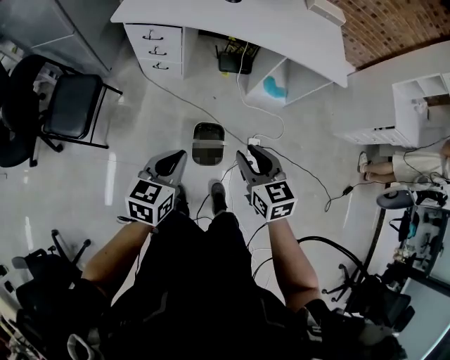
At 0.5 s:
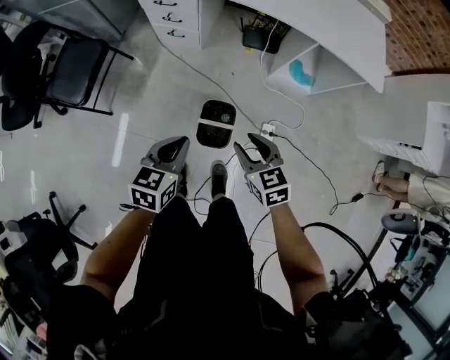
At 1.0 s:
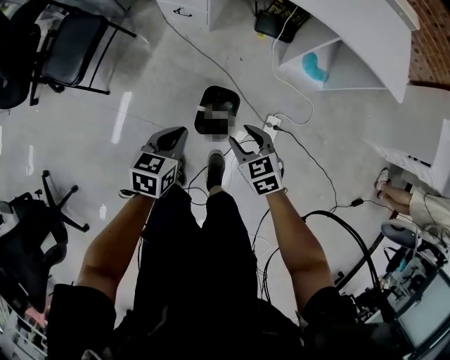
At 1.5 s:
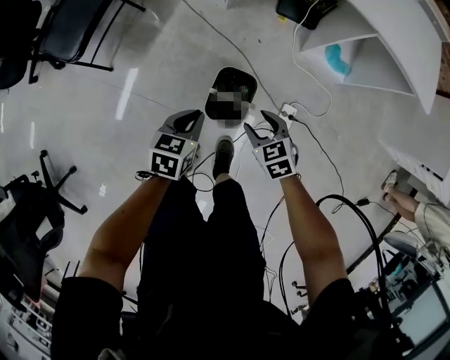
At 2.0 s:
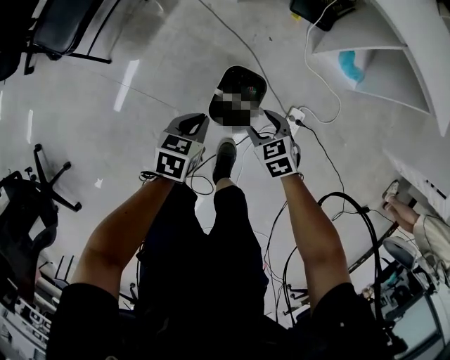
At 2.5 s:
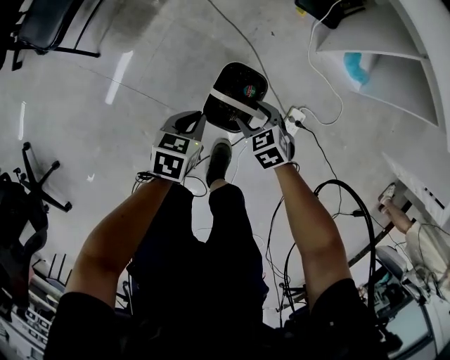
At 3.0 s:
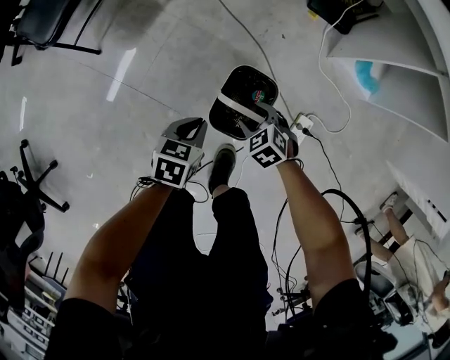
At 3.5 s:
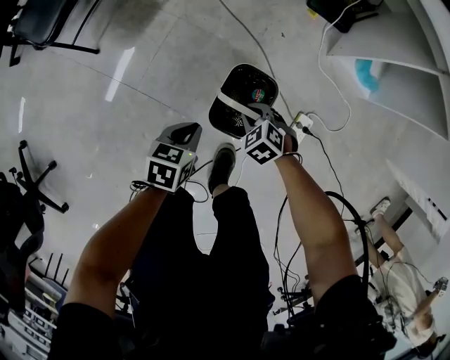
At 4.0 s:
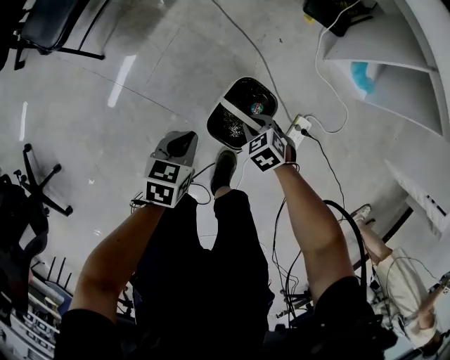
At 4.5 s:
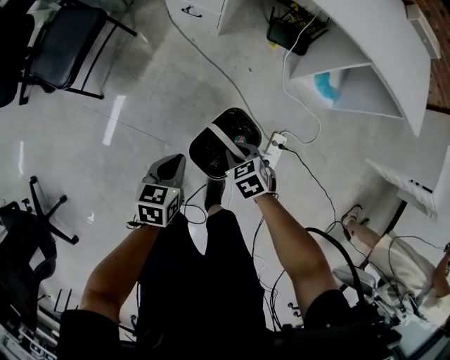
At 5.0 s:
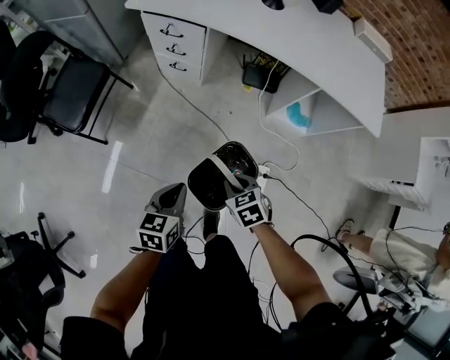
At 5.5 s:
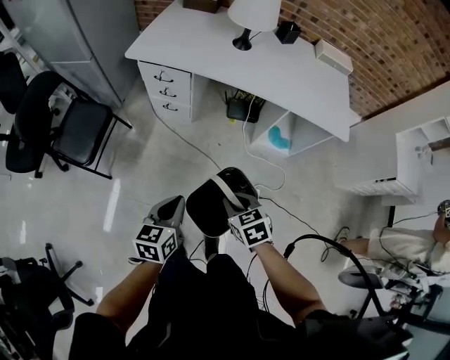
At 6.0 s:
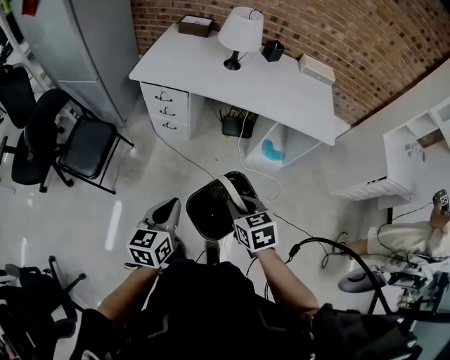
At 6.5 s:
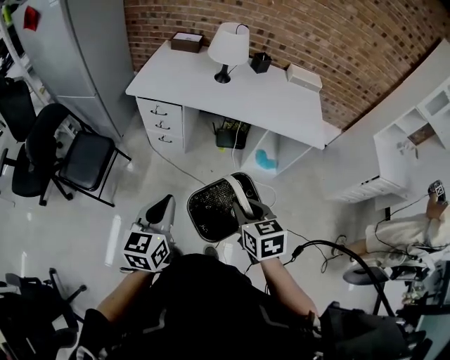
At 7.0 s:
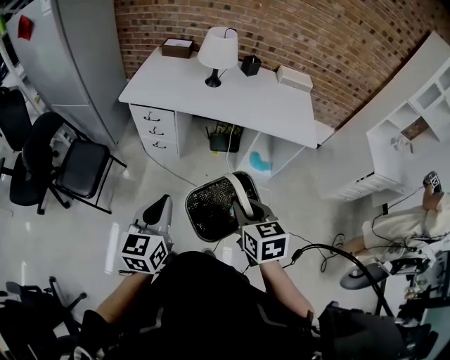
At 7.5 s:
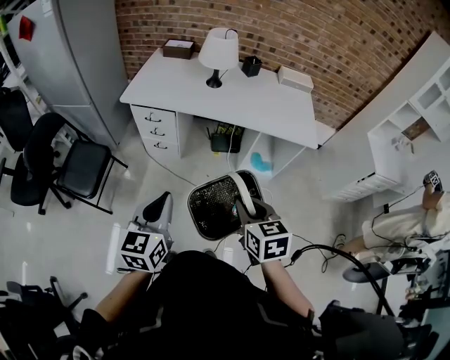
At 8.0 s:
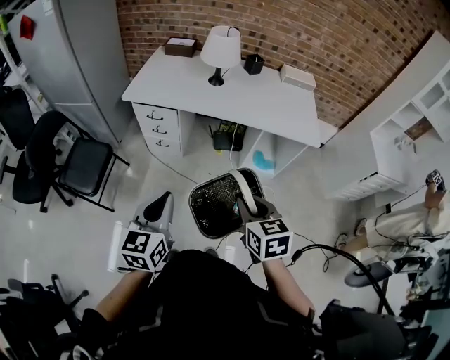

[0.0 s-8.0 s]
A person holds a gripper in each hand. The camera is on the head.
0.0 to 2.0 s: Both grippers move downward, some 40 cm. The right gripper turns by about 40 degrees, and opens, while the left gripper turns by roughly 30 degrees.
2.0 to 4.0 s: The left gripper travels downward by about 5 cm. The right gripper is displaced downward by some 10 cm, and closes its fingers.
4.0 to 6.0 s: Both grippers travel together upward, approximately 50 cm. The right gripper rotates roughly 50 degrees. Meanwhile the left gripper tips its fingers upward by approximately 30 degrees.
6.0 to 8.0 s: Both grippers move upward, approximately 10 cm.

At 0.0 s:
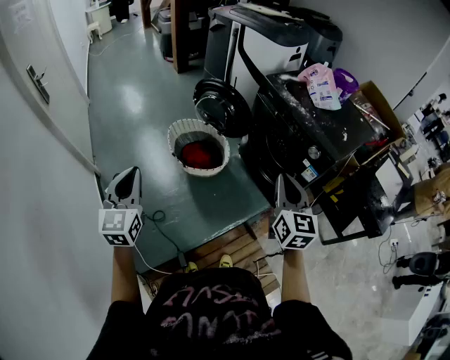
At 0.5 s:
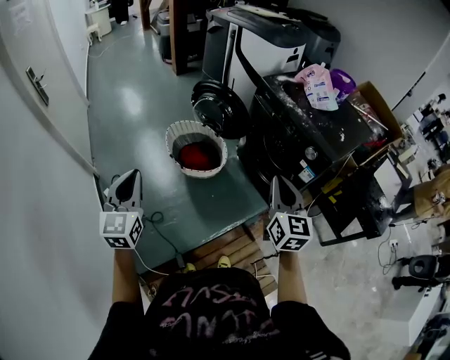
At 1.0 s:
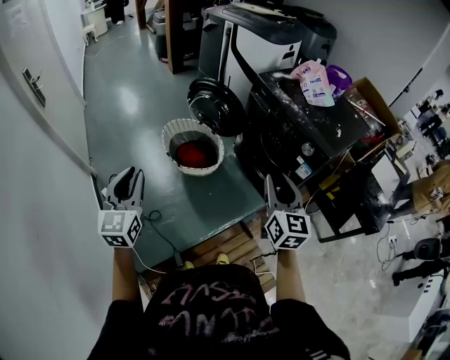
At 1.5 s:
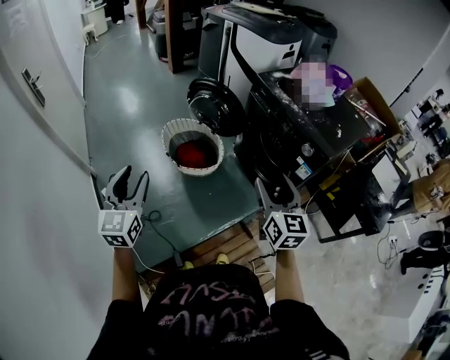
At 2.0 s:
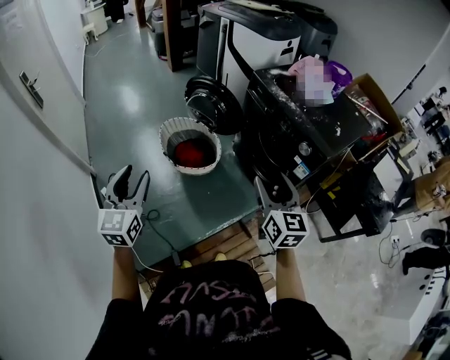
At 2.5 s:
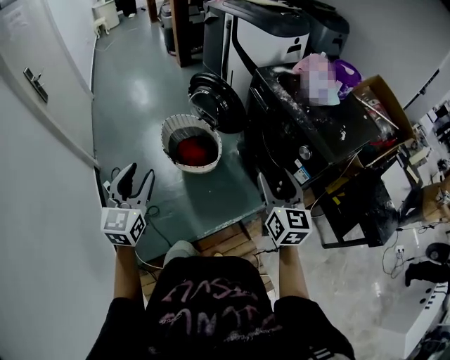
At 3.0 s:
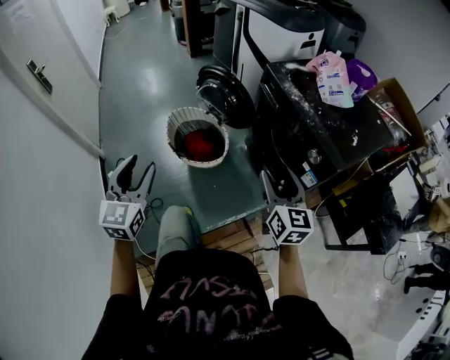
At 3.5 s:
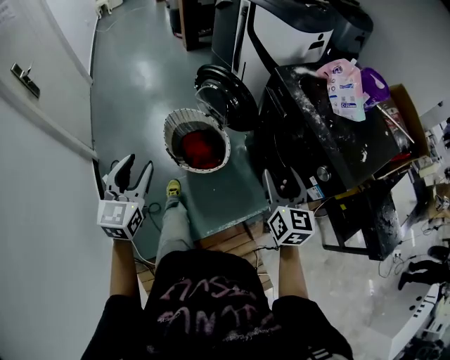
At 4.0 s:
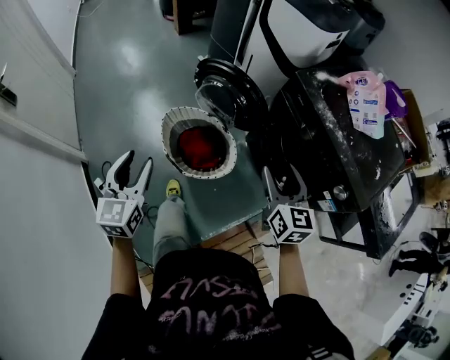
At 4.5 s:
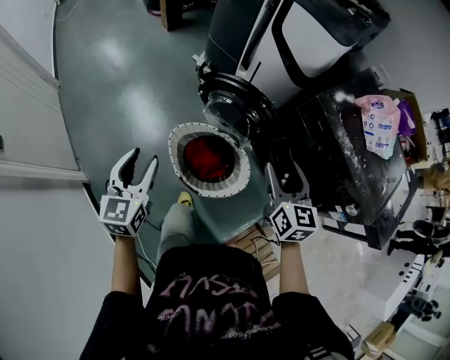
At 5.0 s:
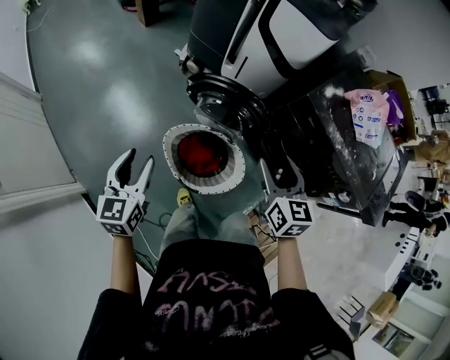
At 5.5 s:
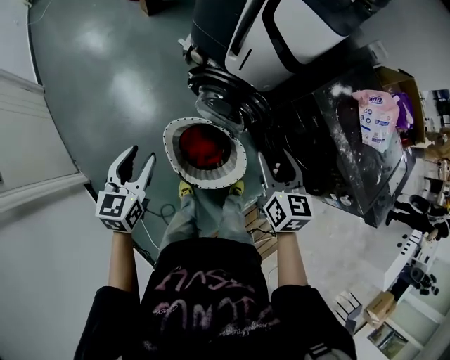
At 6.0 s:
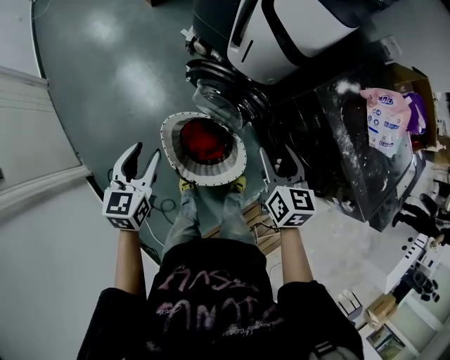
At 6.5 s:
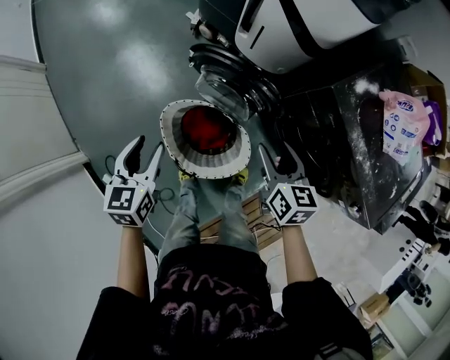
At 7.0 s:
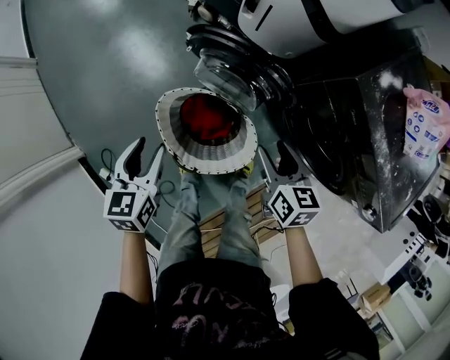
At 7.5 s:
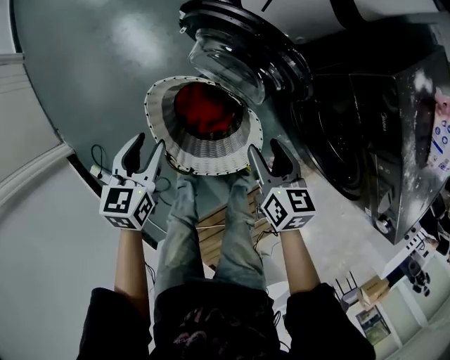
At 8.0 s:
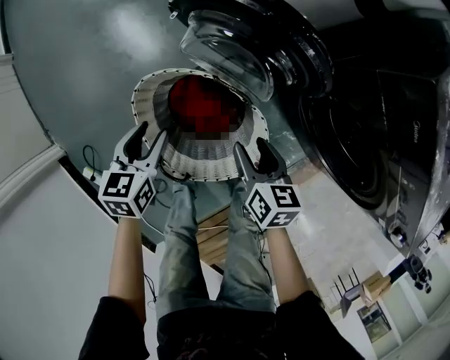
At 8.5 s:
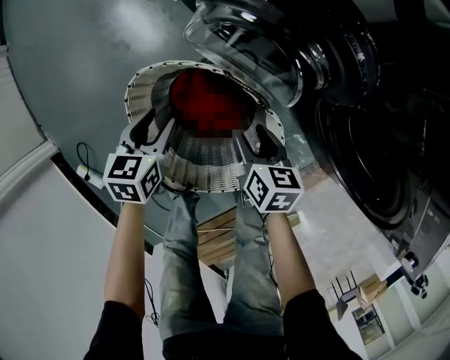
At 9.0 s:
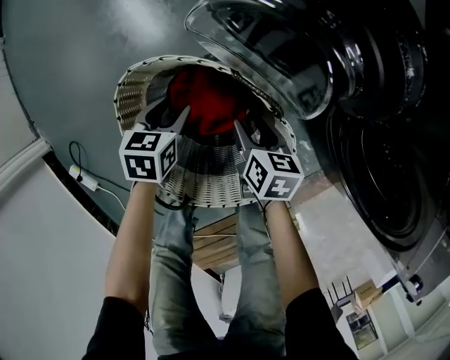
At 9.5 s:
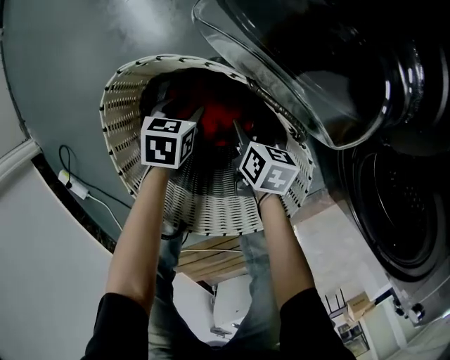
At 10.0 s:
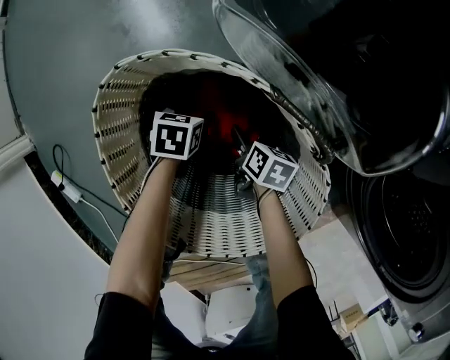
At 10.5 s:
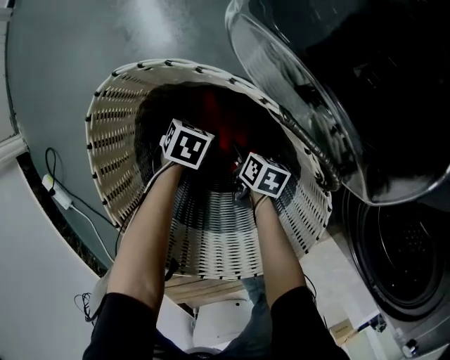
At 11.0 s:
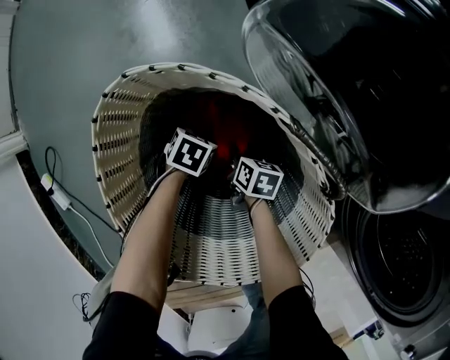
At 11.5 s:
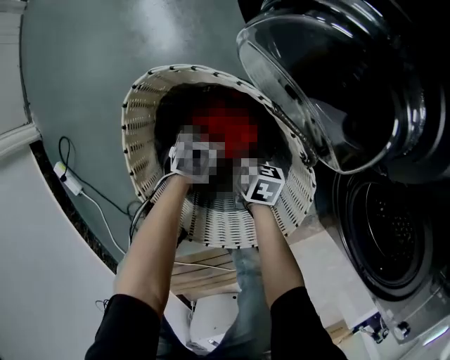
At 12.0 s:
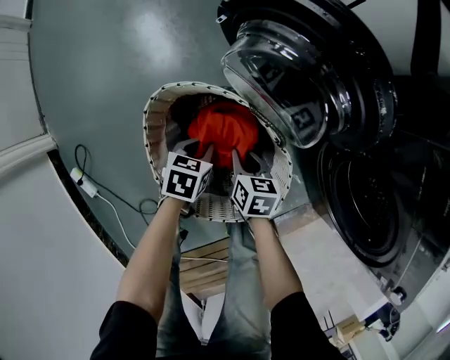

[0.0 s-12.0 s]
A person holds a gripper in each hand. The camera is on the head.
0.0 to 2.0 s: The left gripper heads to the right, covering about 5 cm, and opens, while the right gripper opens its fingers.
2.0 to 4.0 s: The two grippers go about 25 cm forward.
4.0 to 6.0 s: The right gripper shifts some 20 cm forward and to the left. Meanwhile the left gripper goes about 25 cm forward, and changes its angle by roughly 20 degrees.
6.0 to 8.0 s: The grippers both shift downward by roughly 35 cm.
8.0 to 10.0 s: The grippers both shift downward by some 40 cm. The left gripper turns by roughly 20 degrees, and opens its fingers.
10.0 to 12.0 s: The grippers both shift upward by approximately 20 cm. The left gripper closes its fingers, while the right gripper closes its fingers.

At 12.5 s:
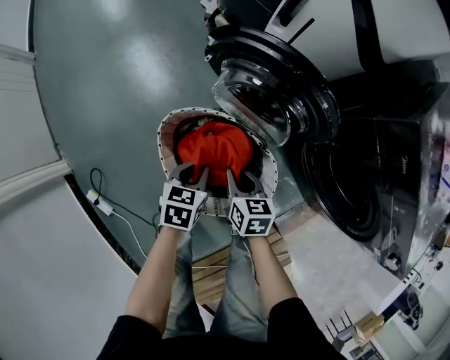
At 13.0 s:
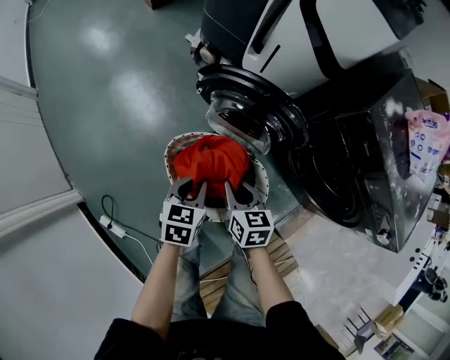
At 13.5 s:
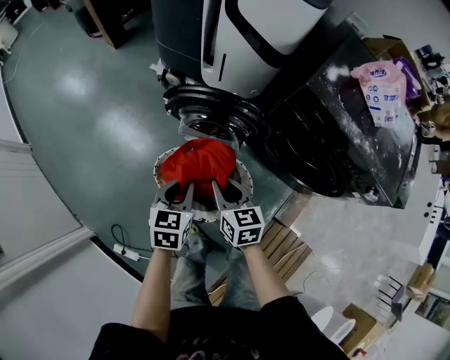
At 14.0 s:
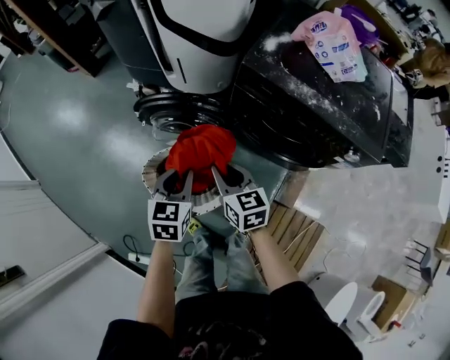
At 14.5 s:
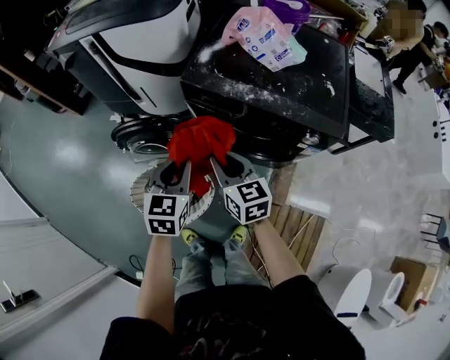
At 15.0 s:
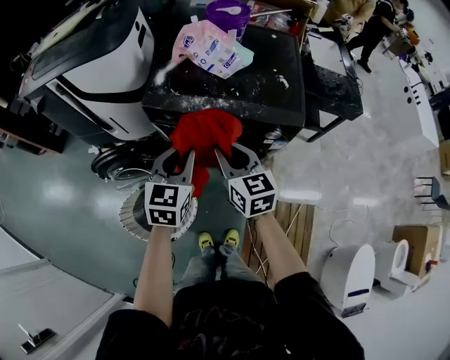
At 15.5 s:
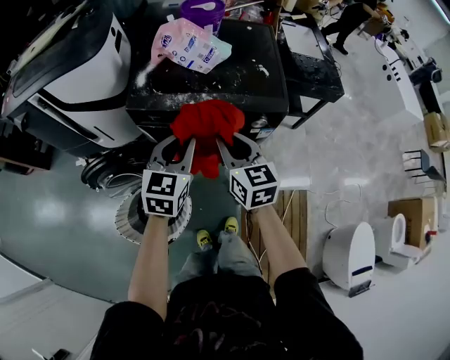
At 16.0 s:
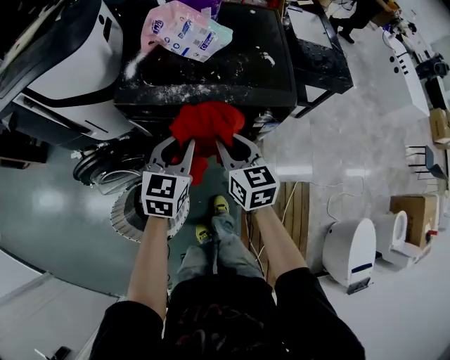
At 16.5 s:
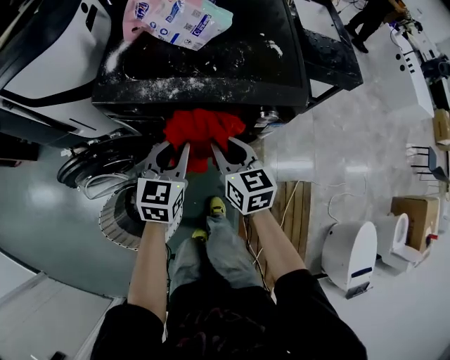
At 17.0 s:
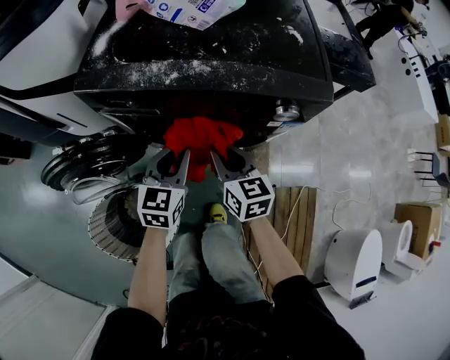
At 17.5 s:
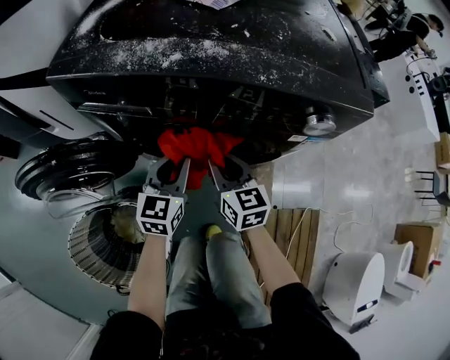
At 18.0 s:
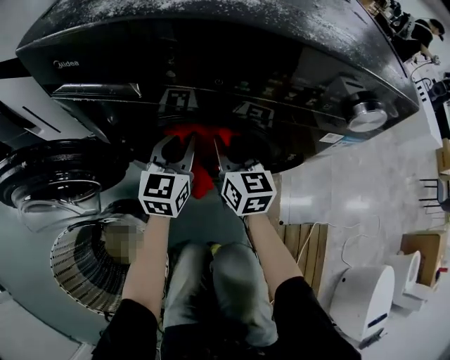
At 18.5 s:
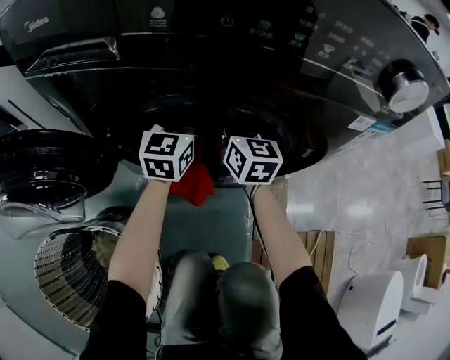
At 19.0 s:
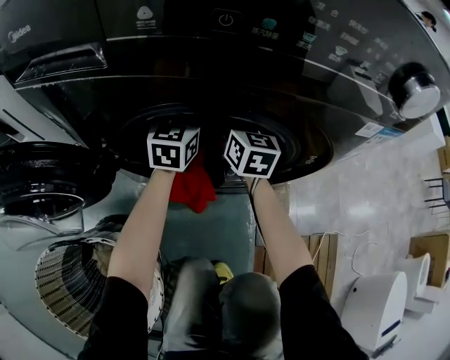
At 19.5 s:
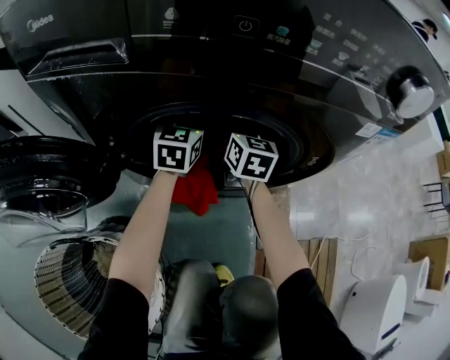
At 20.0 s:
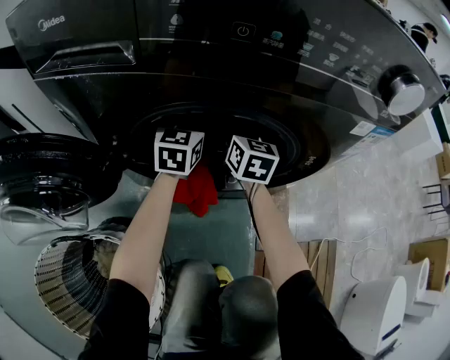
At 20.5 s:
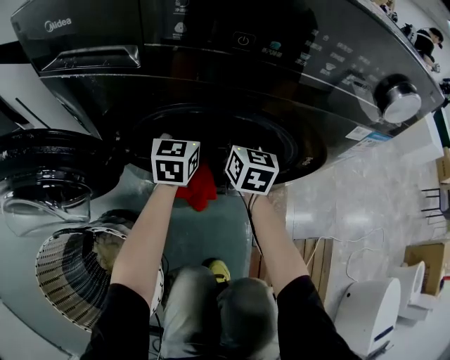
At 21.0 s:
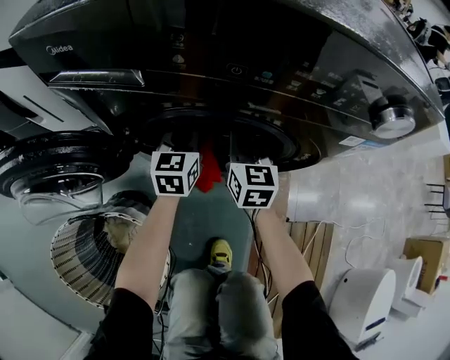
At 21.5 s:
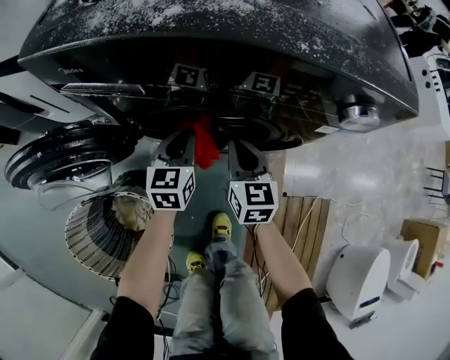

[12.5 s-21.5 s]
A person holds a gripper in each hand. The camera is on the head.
12.5 to 14.5 s: Both grippers move upward and to the right, approximately 50 cm. The right gripper turns by about 40 degrees. Meanwhile the left gripper turns by roughly 50 degrees.
14.5 to 17.0 s: Both grippers travel together downward, to the right and forward, approximately 25 cm. The right gripper swivels about 20 degrees, while the left gripper swivels roughly 20 degrees.
17.0 to 19.5 s: Both grippers move downward and forward, approximately 35 cm. The right gripper opens up. The left gripper opens up.
19.5 to 21.5 s: Both grippers travel together backward and upward, some 20 cm. The left gripper closes up. The right gripper closes.
